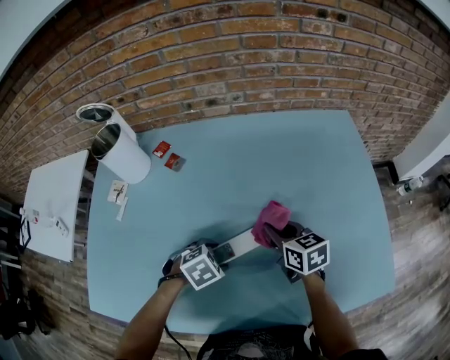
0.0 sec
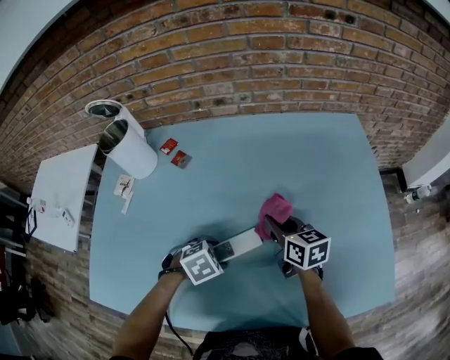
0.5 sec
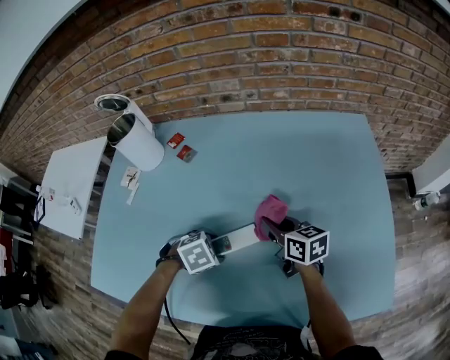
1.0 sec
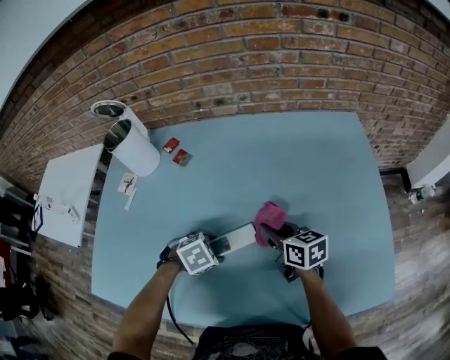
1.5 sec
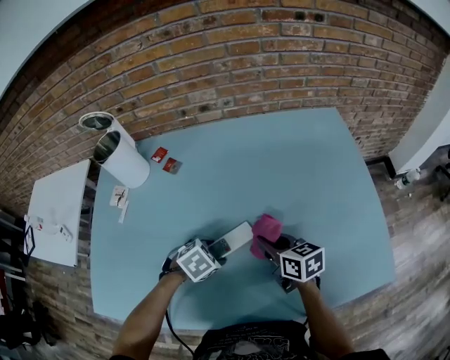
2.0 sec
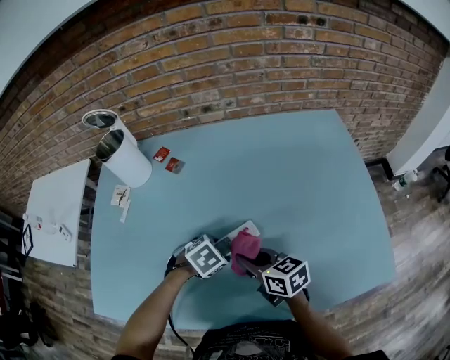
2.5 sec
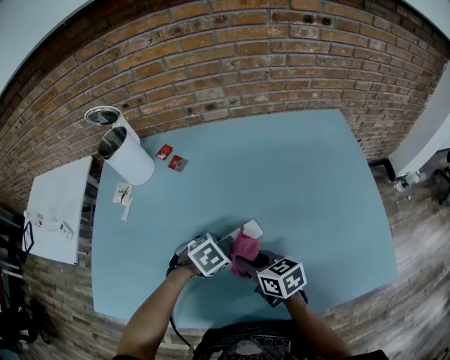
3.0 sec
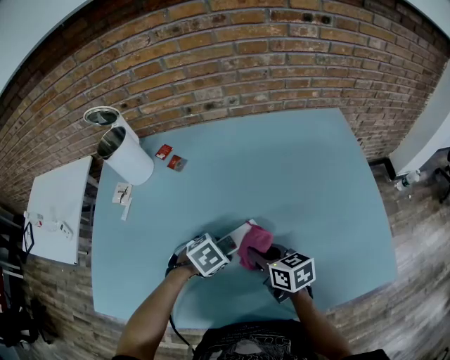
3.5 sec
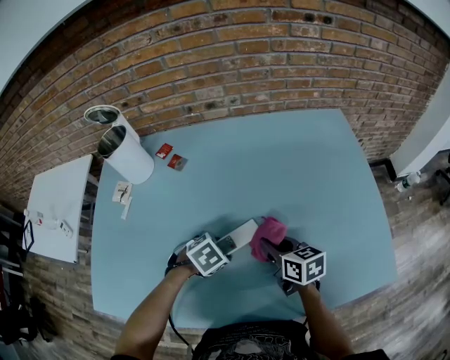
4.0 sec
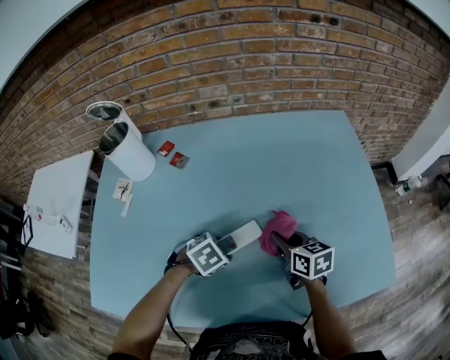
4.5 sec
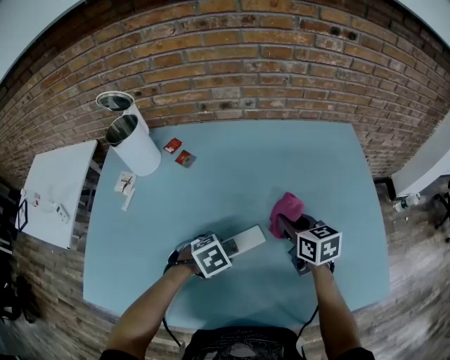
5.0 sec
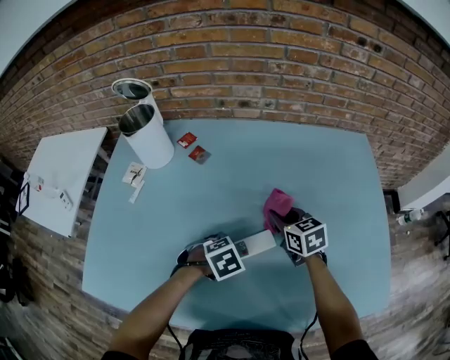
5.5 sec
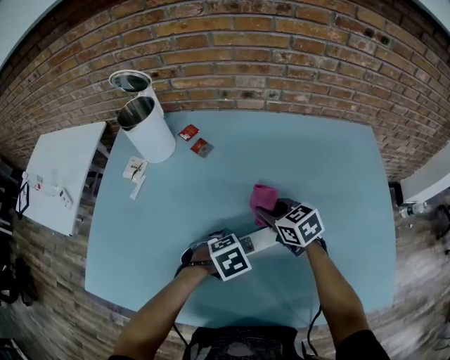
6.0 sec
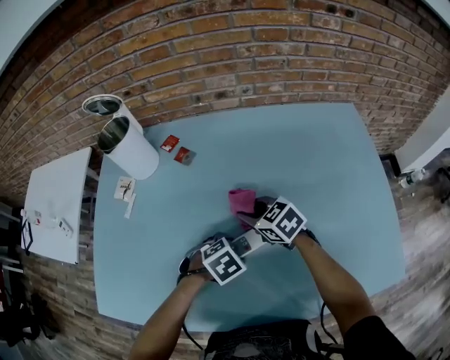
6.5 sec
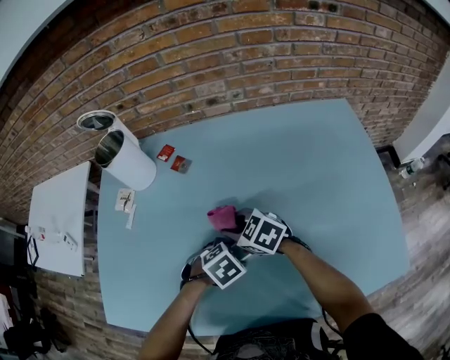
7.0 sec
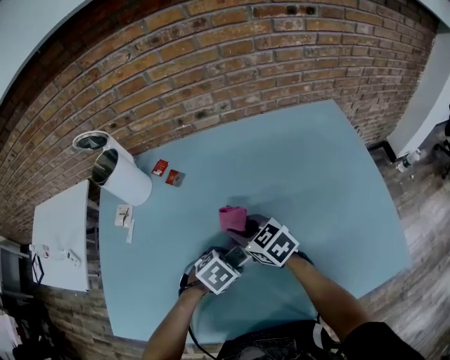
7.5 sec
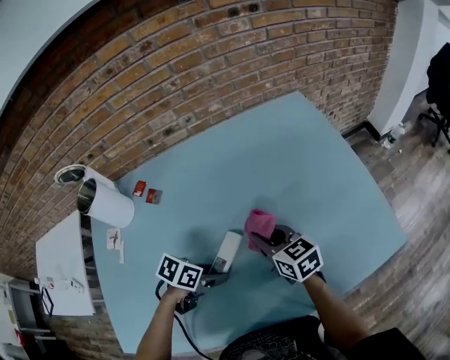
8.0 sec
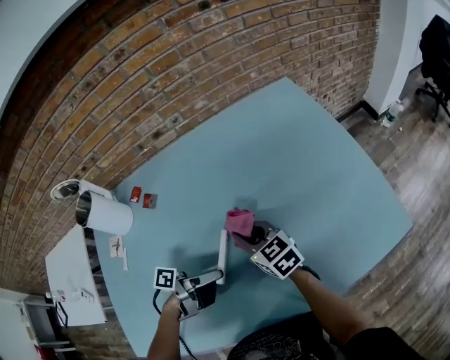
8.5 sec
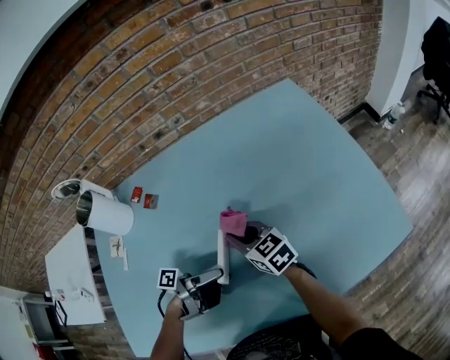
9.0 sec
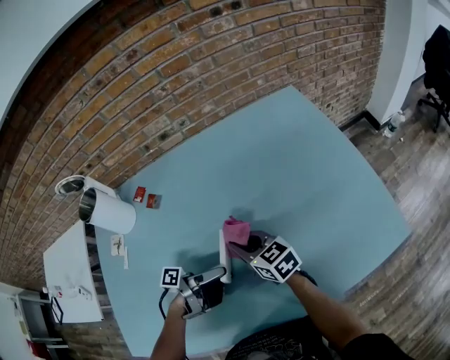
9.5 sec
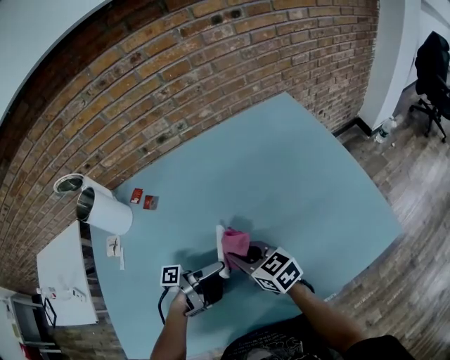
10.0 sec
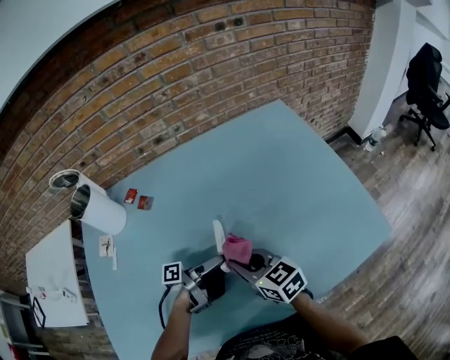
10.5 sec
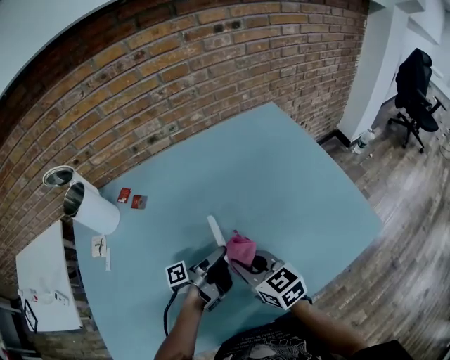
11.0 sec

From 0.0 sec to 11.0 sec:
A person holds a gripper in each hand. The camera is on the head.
From 0.0 sec to 2.0 sec: The right gripper ends up roughly 5 cm from where it was.
From 3.5 sec to 5.5 sec: The right gripper travels forward by some 15 cm, and changes its angle by some 20 degrees.
From 5.5 sec to 7.5 sec: The right gripper shifts by roughly 10 cm.
From 7.5 sec to 9.0 sec: The right gripper swivels some 20 degrees; the left gripper goes roughly 5 cm upward, and angles its fingers upward, by approximately 70 degrees.
From 9.0 sec to 11.0 sec: The right gripper is displaced backward by approximately 10 cm. The left gripper ends up some 5 cm from where it was.

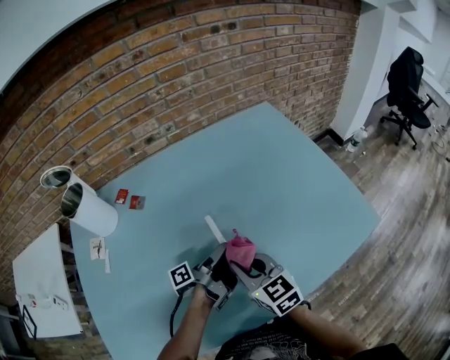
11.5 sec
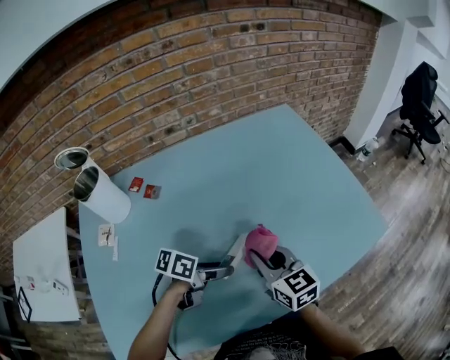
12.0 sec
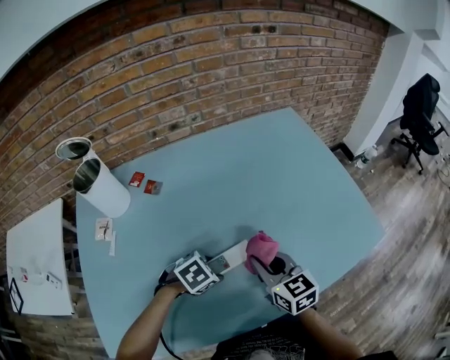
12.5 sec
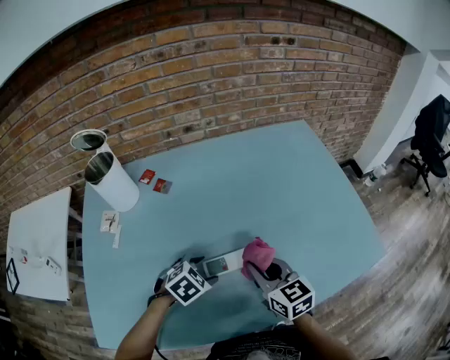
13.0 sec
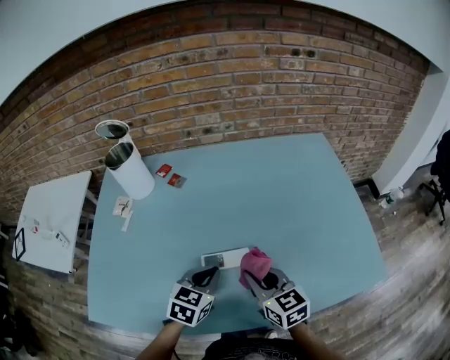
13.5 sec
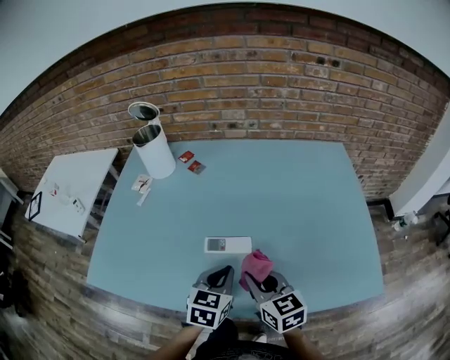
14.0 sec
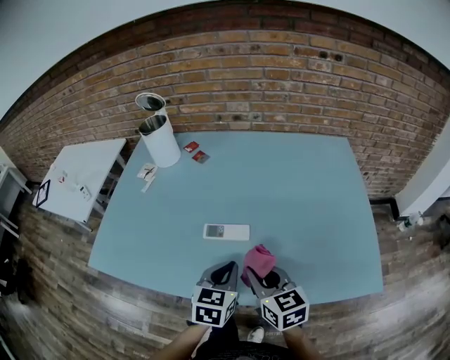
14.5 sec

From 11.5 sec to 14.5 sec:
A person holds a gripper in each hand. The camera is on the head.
From 11.5 sec to 13.0 sec: The left gripper shifts roughly 10 cm to the left and backward, and rolls clockwise, seen from behind, by about 100 degrees.
From 13.0 sec to 14.5 sec: The right gripper moves roughly 10 cm; the left gripper moves some 15 cm, swivels approximately 60 degrees, and closes up.

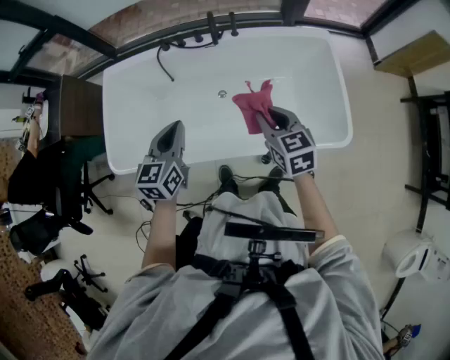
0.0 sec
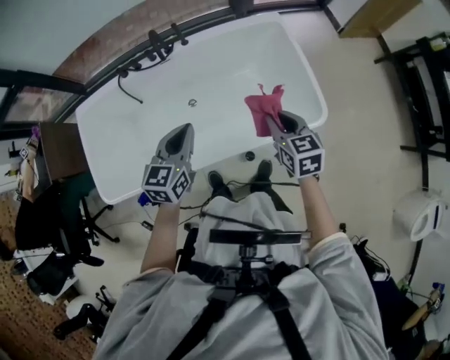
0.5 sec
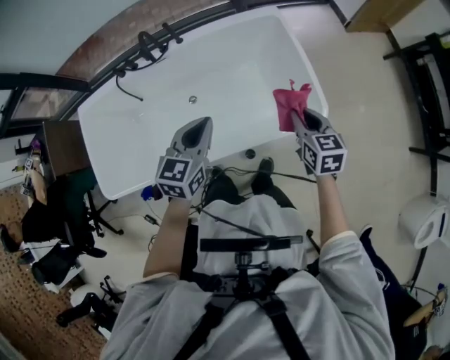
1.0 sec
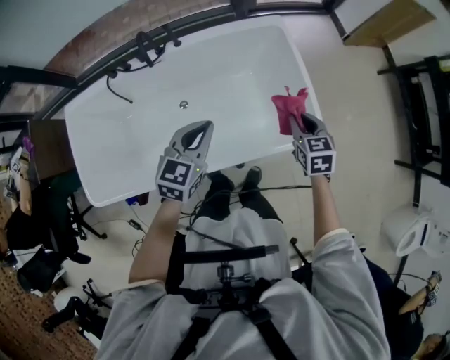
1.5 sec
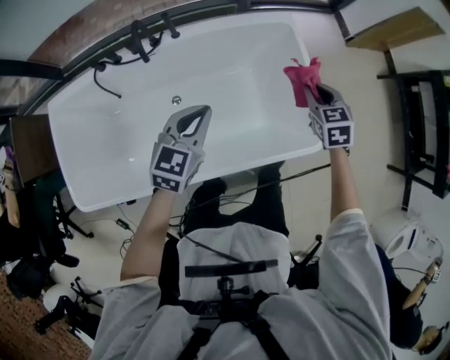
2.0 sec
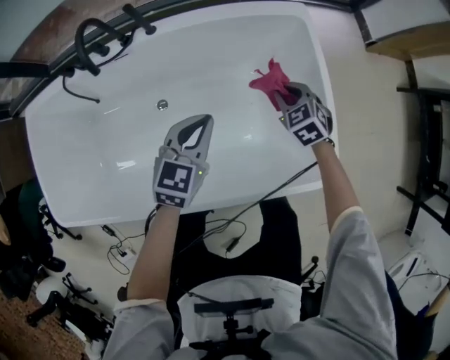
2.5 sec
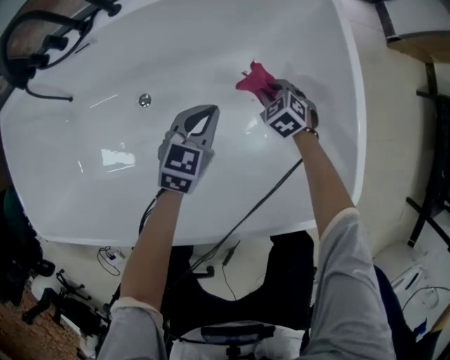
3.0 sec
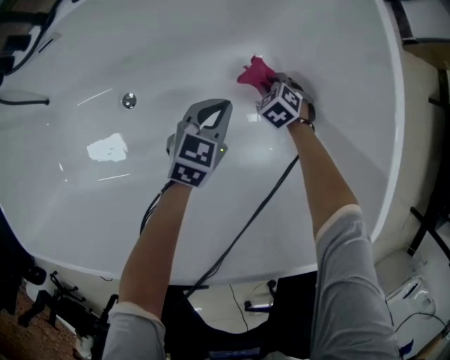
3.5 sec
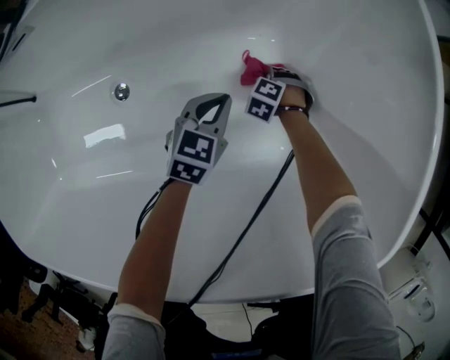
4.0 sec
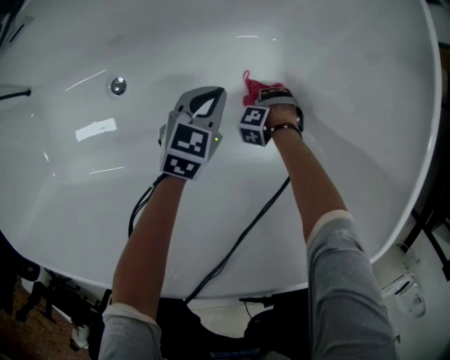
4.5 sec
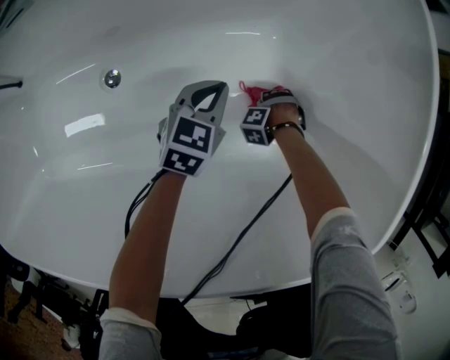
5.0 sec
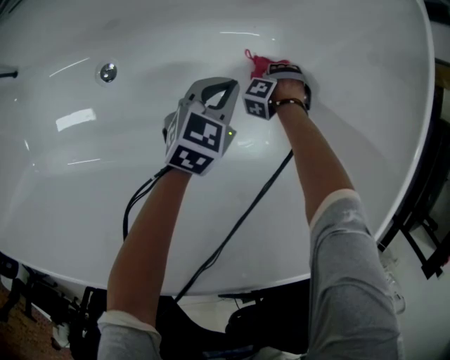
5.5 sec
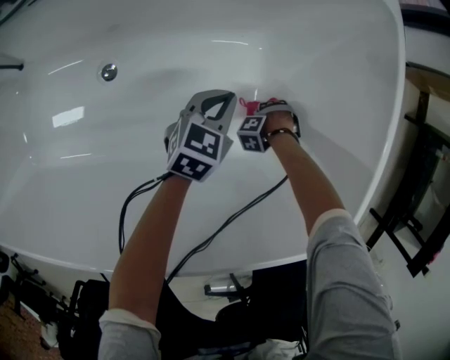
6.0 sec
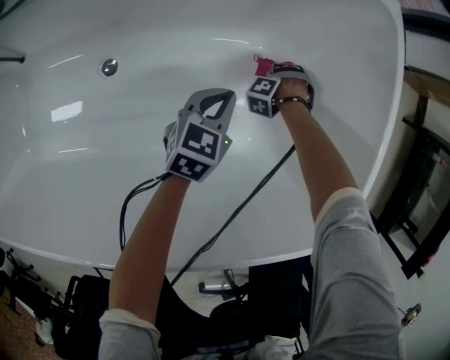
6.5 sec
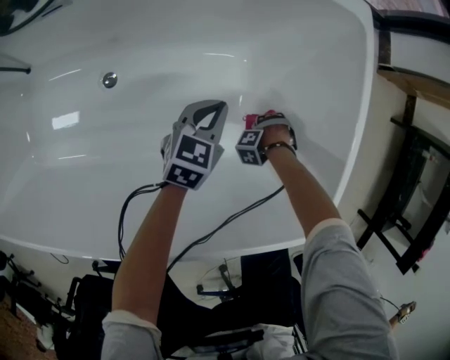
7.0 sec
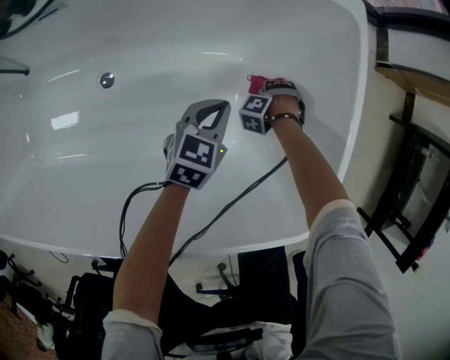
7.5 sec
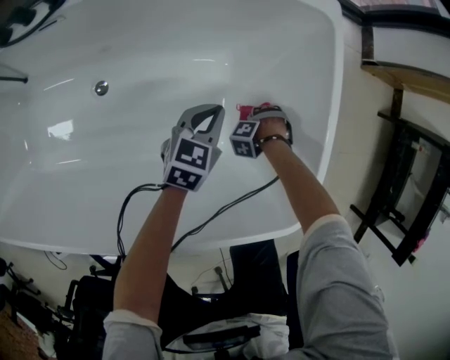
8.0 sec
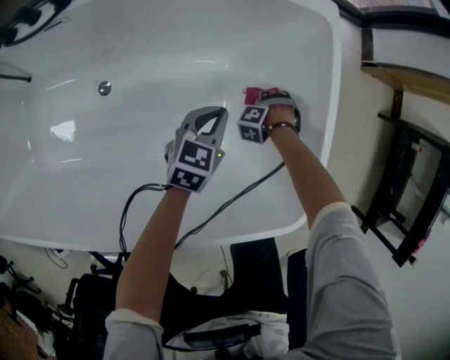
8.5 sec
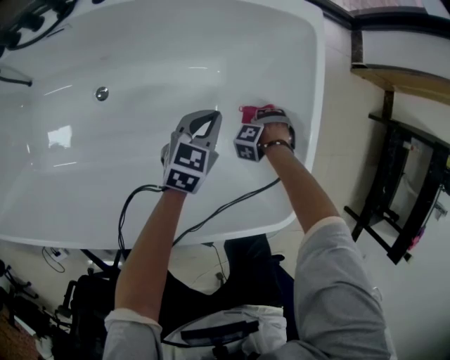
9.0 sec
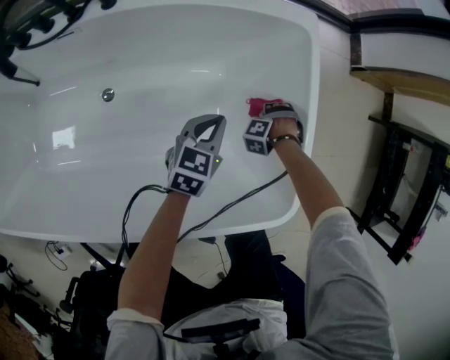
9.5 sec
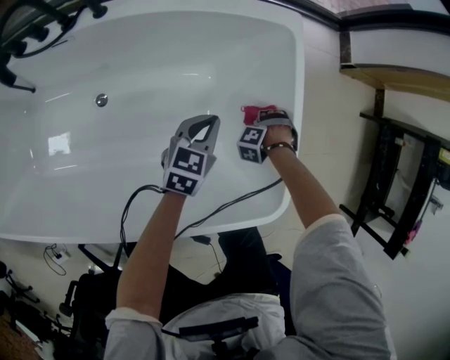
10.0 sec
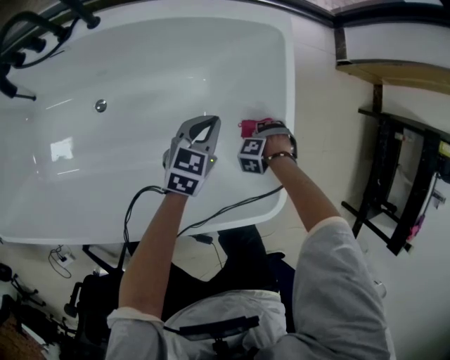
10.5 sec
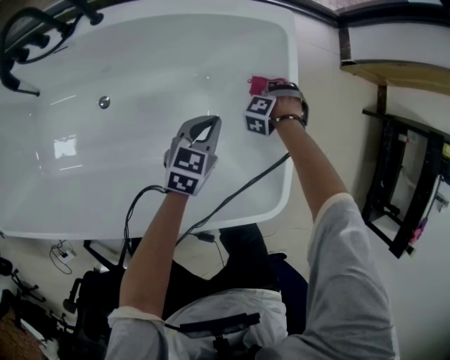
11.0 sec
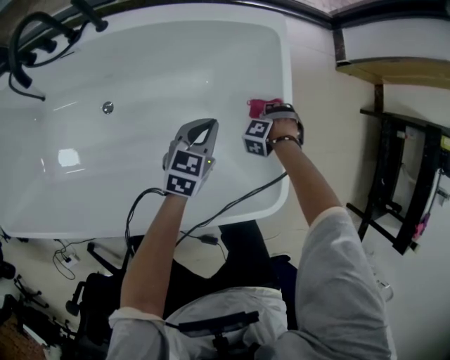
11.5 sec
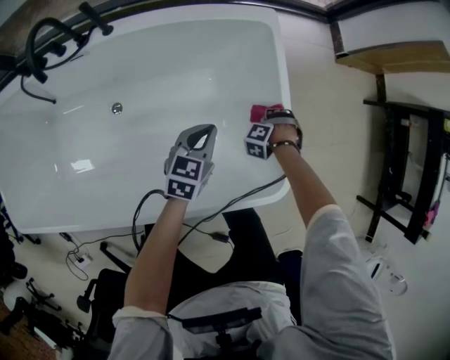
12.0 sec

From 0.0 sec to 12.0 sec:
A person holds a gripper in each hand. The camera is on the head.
From 0.0 sec to 2.0 sec: The left gripper ends up about 30 cm from where it was, and rotates some 30 degrees.
From 2.0 sec to 4.0 sec: The left gripper is displaced downward by approximately 60 cm.
From 4.0 sec to 6.0 sec: The left gripper shifts some 5 cm upward.
From 6.0 sec to 8.0 sec: The left gripper shifts roughly 10 cm upward.
From 8.0 sec to 10.0 sec: The left gripper heads upward, covering some 10 cm.
From 10.0 sec to 12.0 sec: The left gripper heads upward, covering approximately 5 cm.

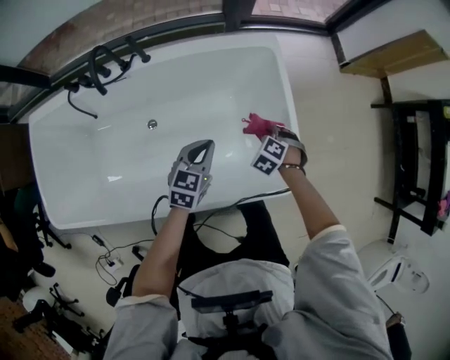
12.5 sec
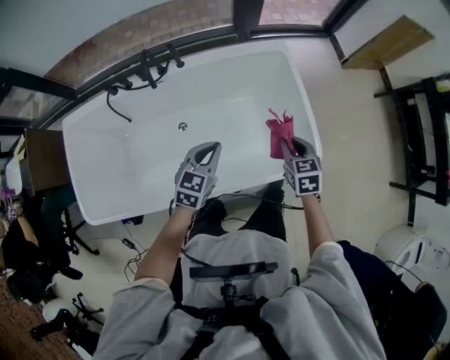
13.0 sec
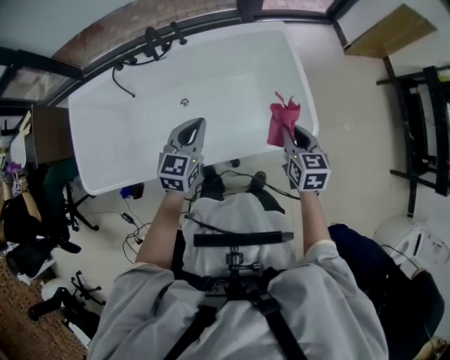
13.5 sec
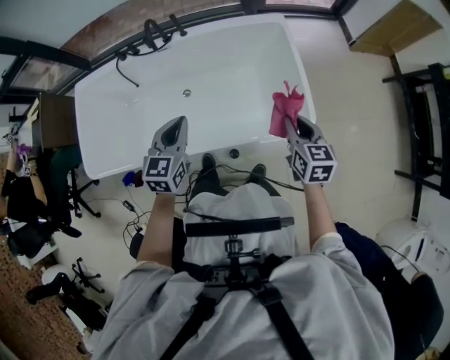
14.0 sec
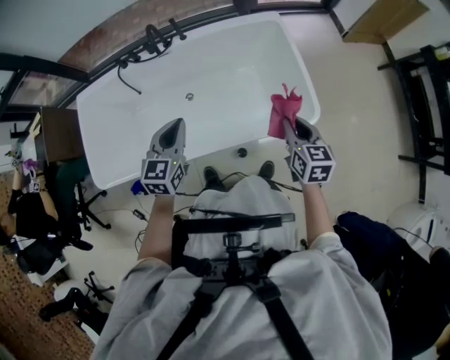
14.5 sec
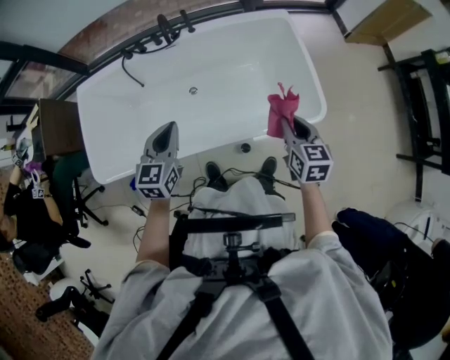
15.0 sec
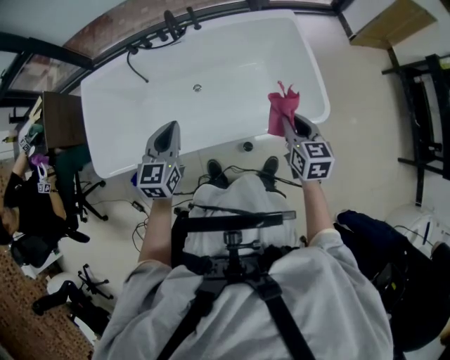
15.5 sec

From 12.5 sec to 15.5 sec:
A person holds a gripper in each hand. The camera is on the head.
From 12.5 sec to 14.0 sec: The left gripper moves some 35 cm.
From 14.0 sec to 15.5 sec: The left gripper moves approximately 15 cm.
